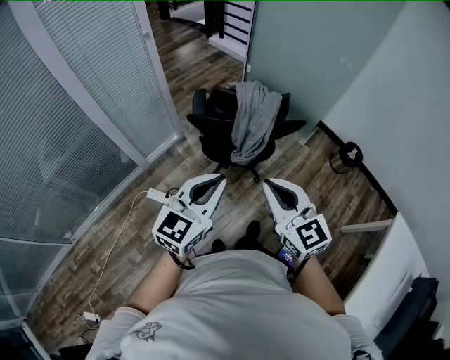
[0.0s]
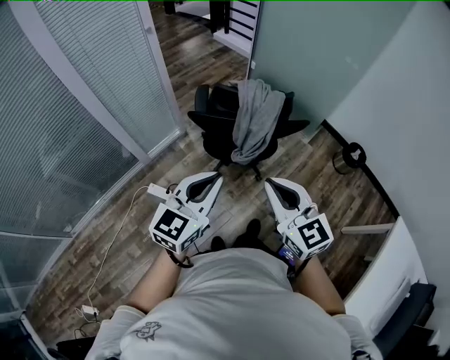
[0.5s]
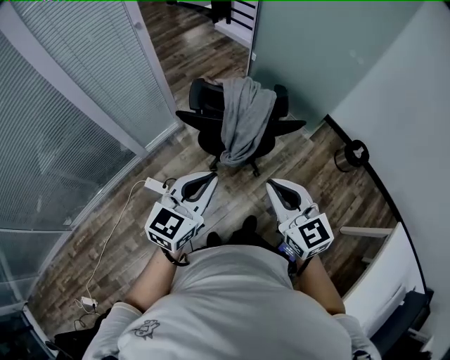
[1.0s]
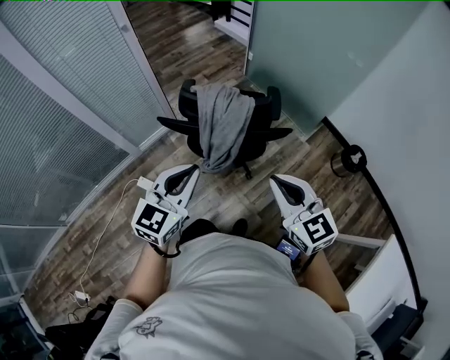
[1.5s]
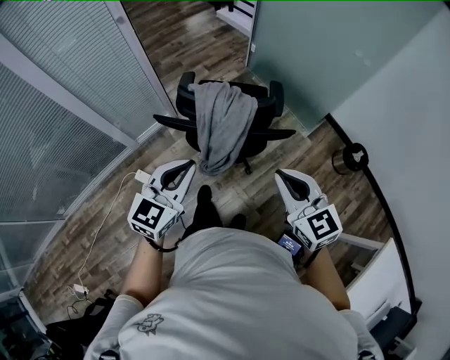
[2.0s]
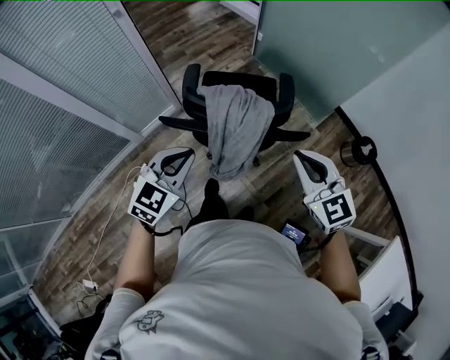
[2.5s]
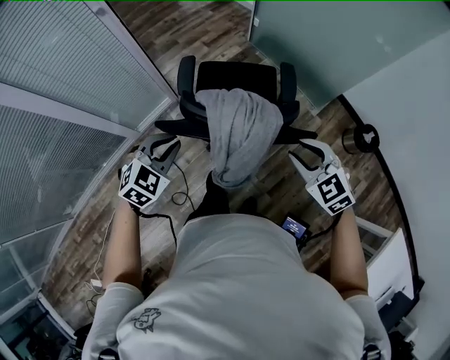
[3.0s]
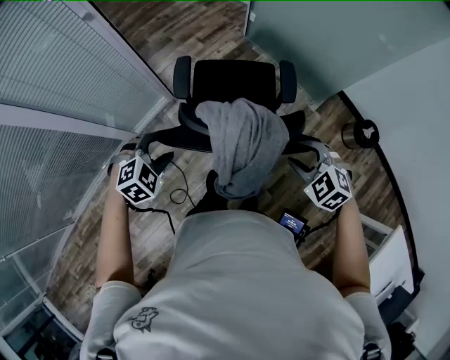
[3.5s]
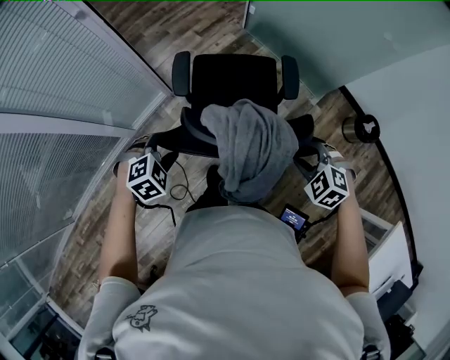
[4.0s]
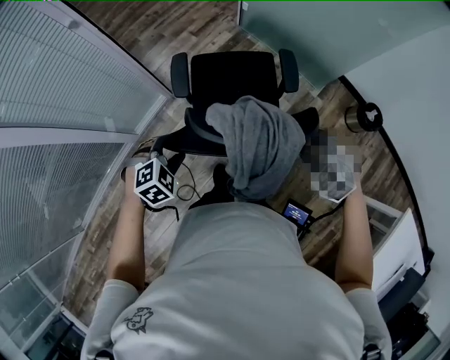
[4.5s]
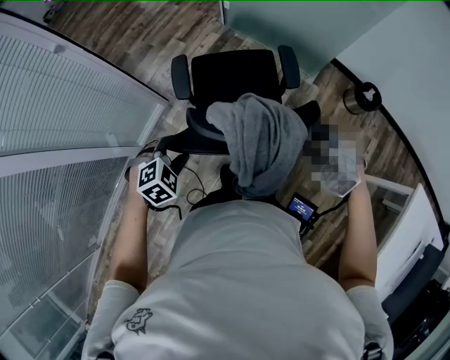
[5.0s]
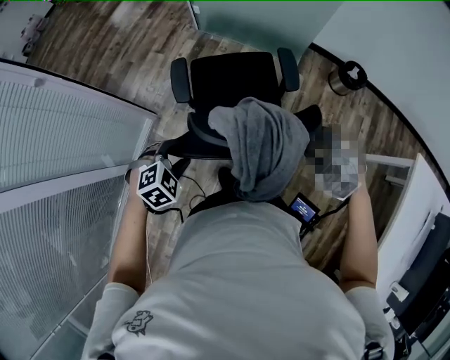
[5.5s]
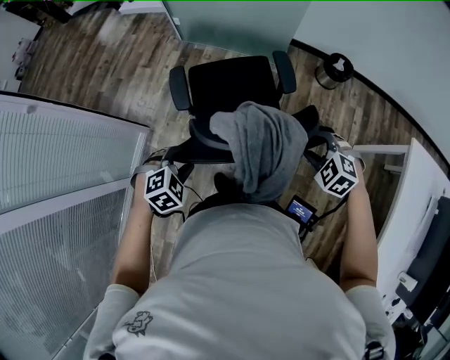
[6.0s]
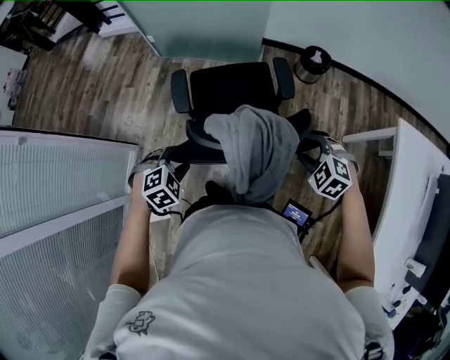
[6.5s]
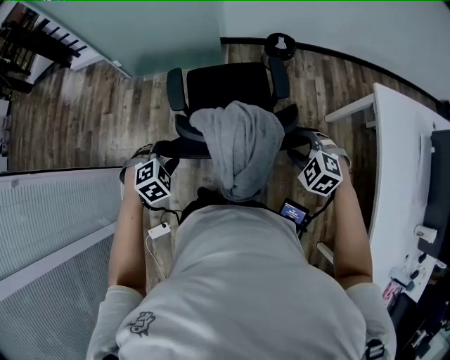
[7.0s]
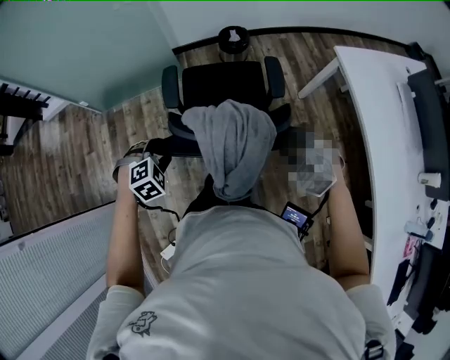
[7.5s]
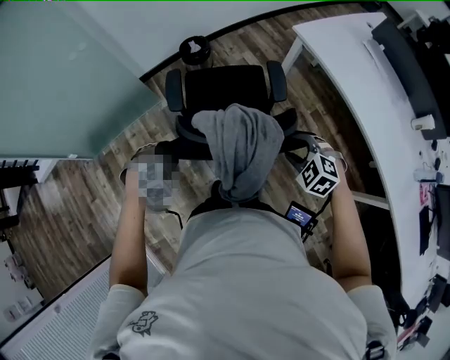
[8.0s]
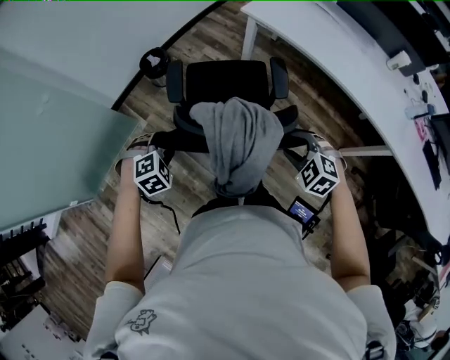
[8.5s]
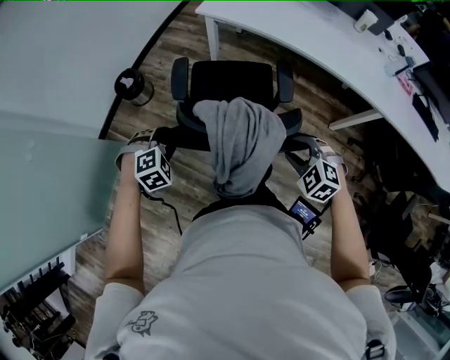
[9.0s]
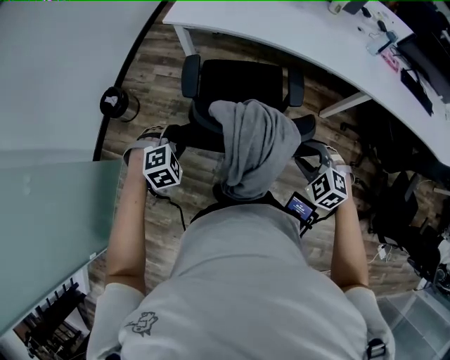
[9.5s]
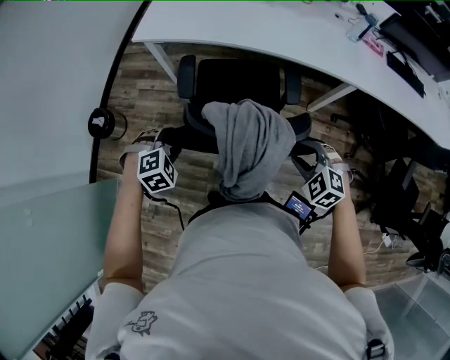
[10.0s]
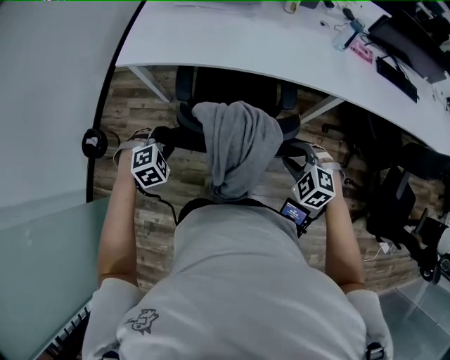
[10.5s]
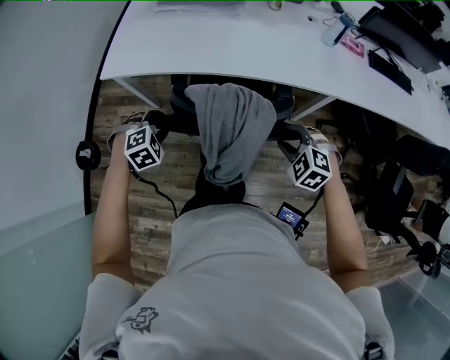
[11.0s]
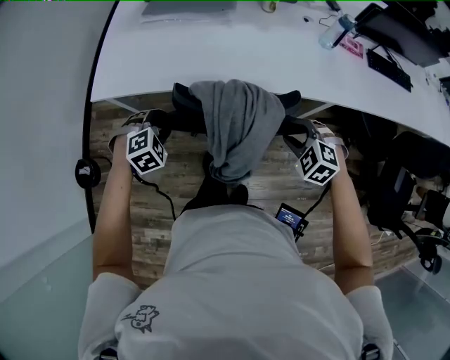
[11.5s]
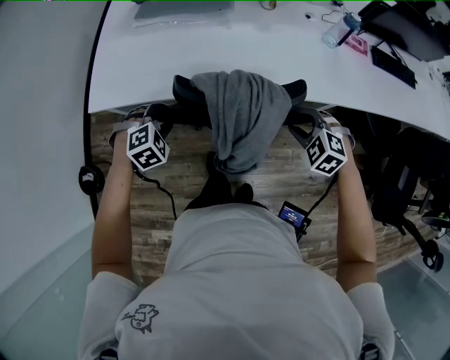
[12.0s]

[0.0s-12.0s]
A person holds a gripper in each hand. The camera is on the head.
0.0s to 2.0s: The left gripper travels forward, to the right and downward by roughly 20 cm. The right gripper heads to the right and forward, covering about 25 cm.
2.0s to 4.0s: The right gripper heads downward and forward, covering some 25 cm, tips its fingers downward by roughly 50 degrees, and opens. Meanwhile the left gripper heads downward, forward and to the left, covering roughly 35 cm, points its fingers some 50 degrees further downward, and opens up.
4.0s to 6.0s: The left gripper ends up about 15 cm from where it was, and rotates roughly 30 degrees, while the right gripper ends up approximately 15 cm from where it was, and swivels about 30 degrees.
6.0s to 8.0s: The right gripper ends up approximately 35 cm from where it was, and twists approximately 40 degrees clockwise, seen from behind, while the left gripper moves about 40 cm, and twists approximately 50 degrees clockwise, seen from behind.
8.0s to 10.0s: The left gripper ends up roughly 40 cm from where it was, and rotates around the line of its fingers by approximately 50 degrees, clockwise from behind; the right gripper shifts by roughly 35 cm, and swivels approximately 50 degrees.
10.0s to 12.0s: Both grippers travel together forward, about 40 cm.

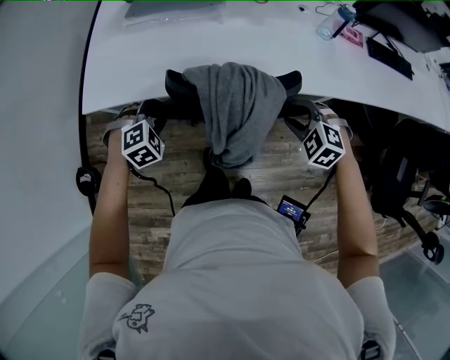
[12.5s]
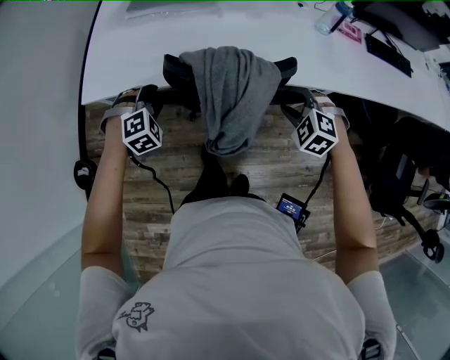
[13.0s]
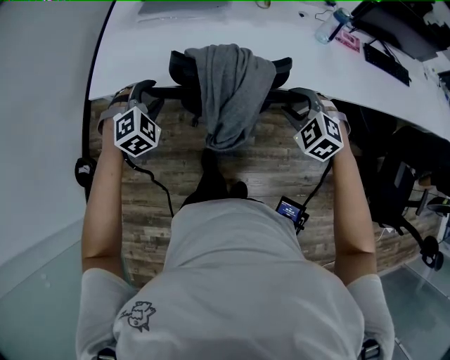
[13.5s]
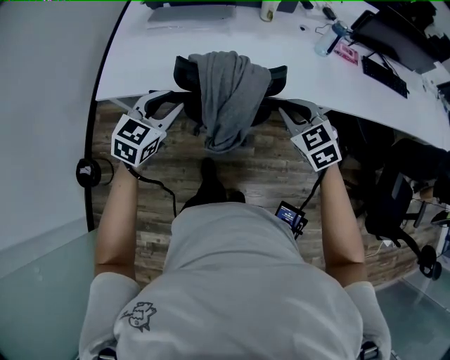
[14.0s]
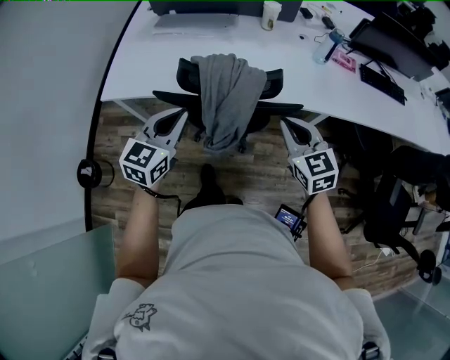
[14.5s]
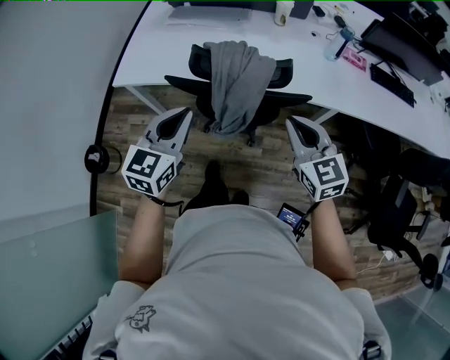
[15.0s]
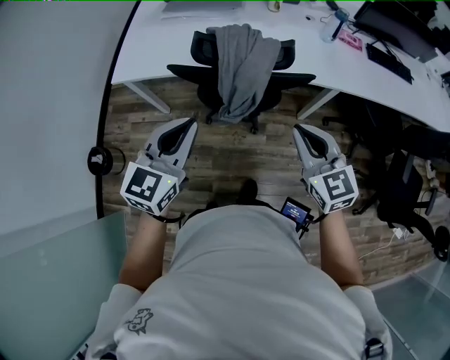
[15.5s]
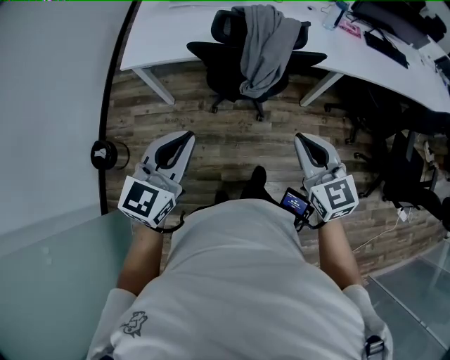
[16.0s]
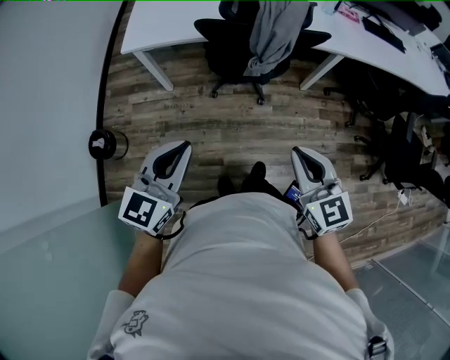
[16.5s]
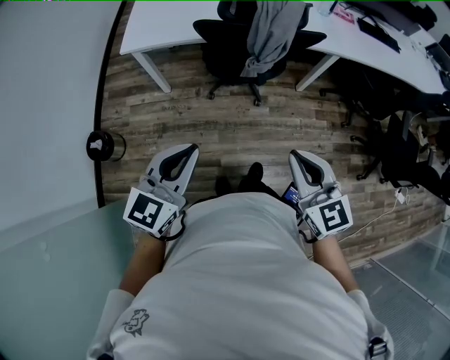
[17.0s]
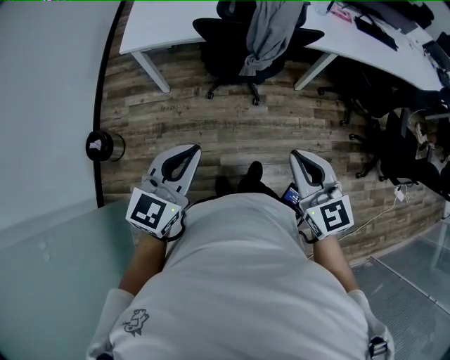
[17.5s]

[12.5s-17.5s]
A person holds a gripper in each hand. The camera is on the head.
12.5s to 15.0s: The left gripper is displaced upward, backward and to the right by about 30 cm, tilts its fingers approximately 50 degrees upward, and closes up; the right gripper is displaced upward and backward by about 20 cm, angles its fingers upward, by some 40 degrees, and closes up.
15.0s to 17.5s: The right gripper is displaced backward and to the left by roughly 40 cm; the left gripper is displaced backward by approximately 35 cm.

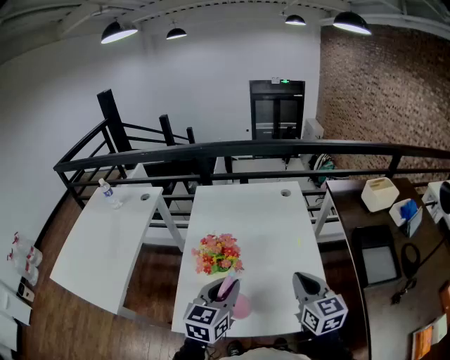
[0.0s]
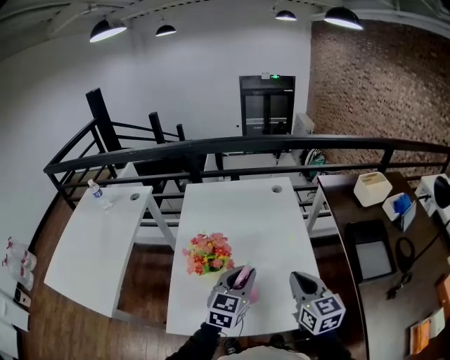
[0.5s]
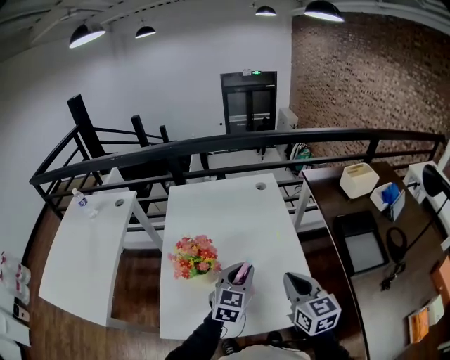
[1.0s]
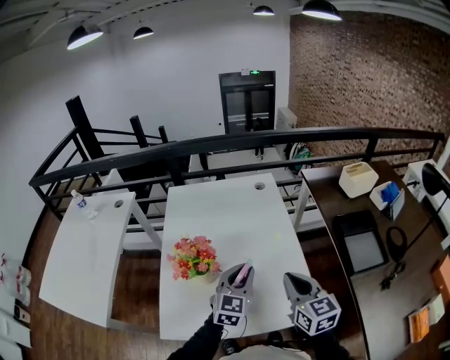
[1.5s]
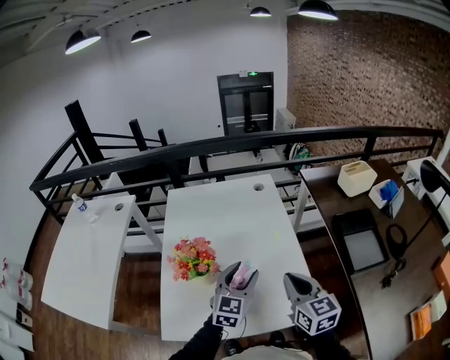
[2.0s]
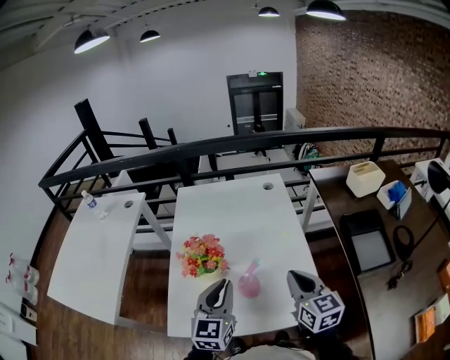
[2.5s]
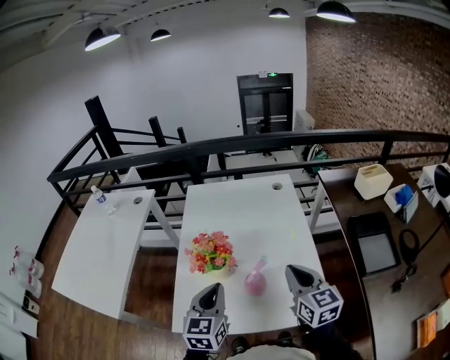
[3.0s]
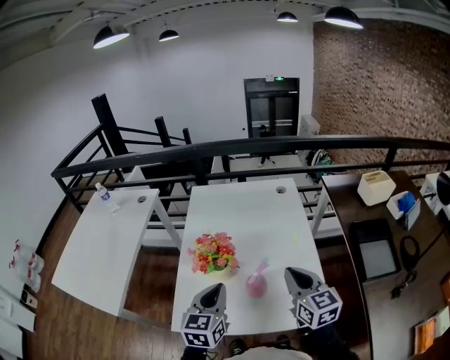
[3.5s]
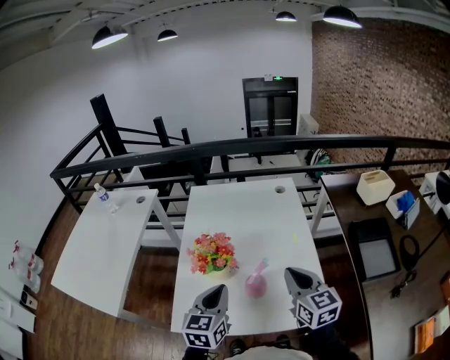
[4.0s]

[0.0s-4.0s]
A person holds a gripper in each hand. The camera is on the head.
0.0s to 2.0s: The left gripper shifts roughly 15 cm to the right, forward and downward, and opens up.
2.0s to 4.0s: The right gripper ends up roughly 5 cm from where it was, while the left gripper is displaced to the left and backward by some 15 cm, rotates approximately 20 degrees, and closes.

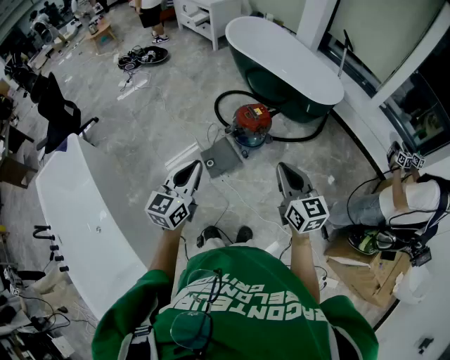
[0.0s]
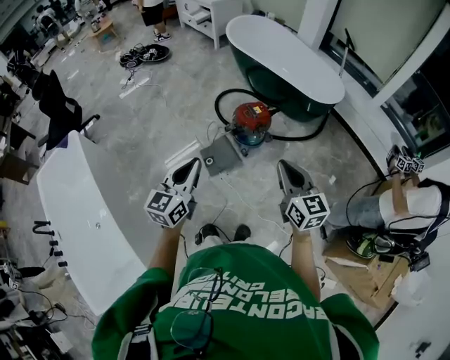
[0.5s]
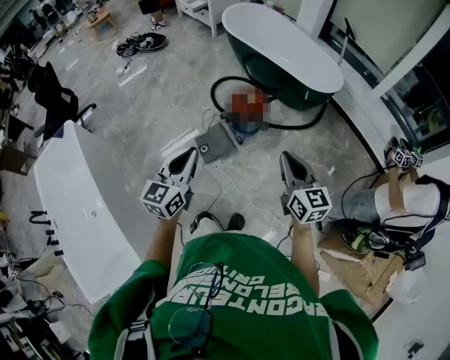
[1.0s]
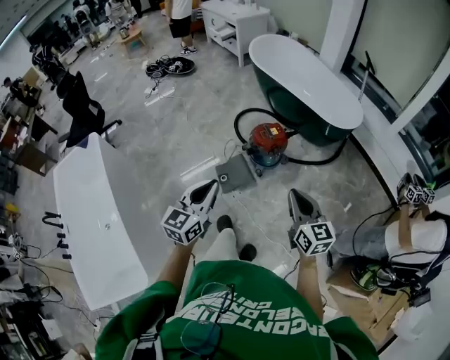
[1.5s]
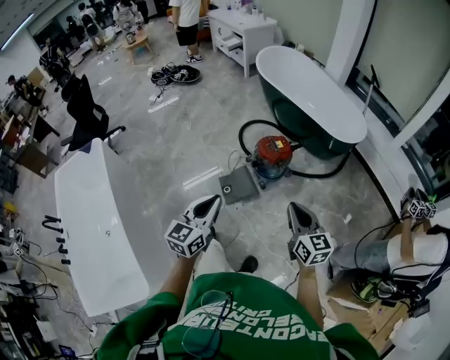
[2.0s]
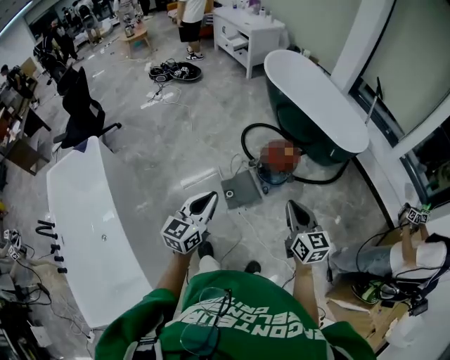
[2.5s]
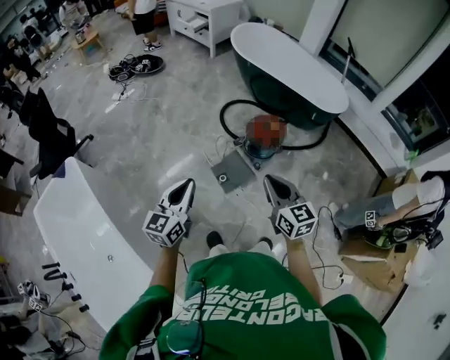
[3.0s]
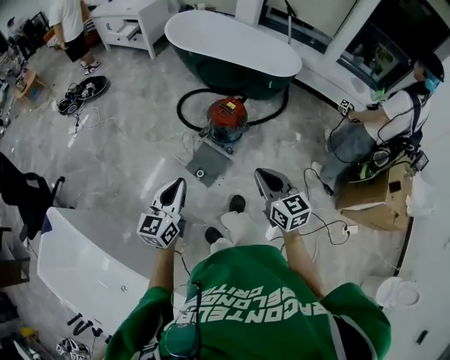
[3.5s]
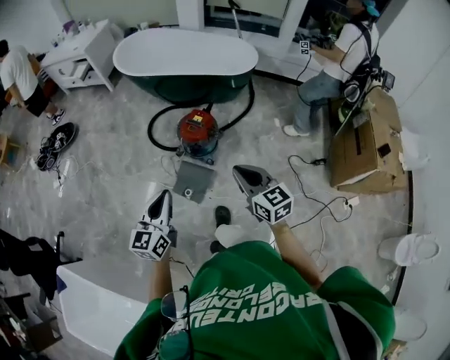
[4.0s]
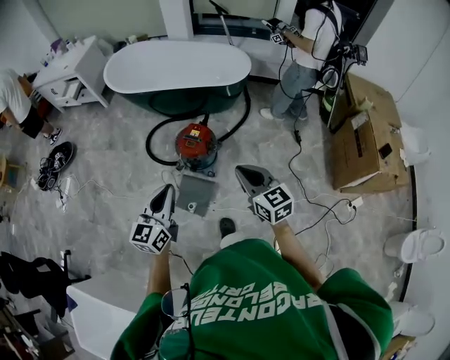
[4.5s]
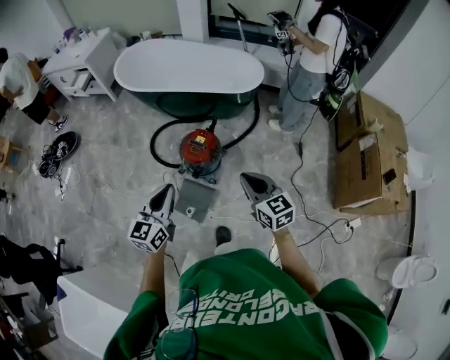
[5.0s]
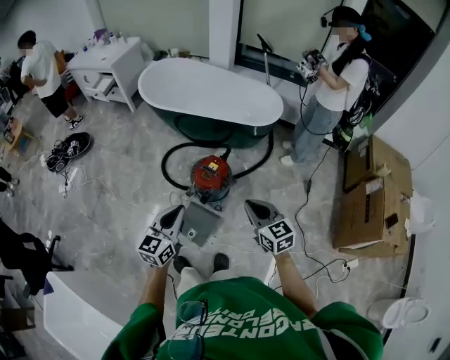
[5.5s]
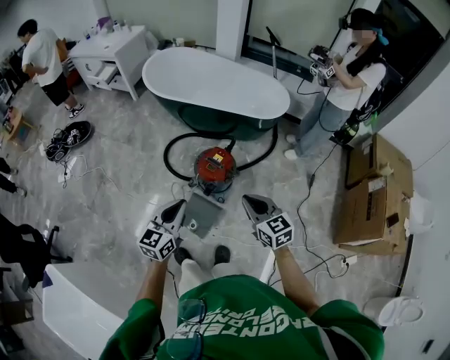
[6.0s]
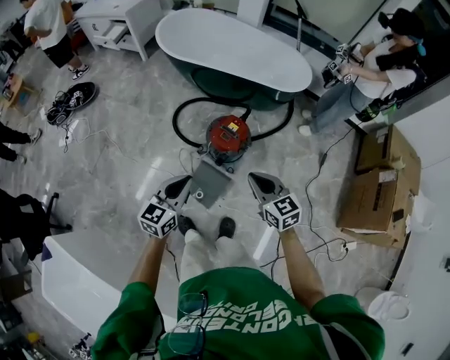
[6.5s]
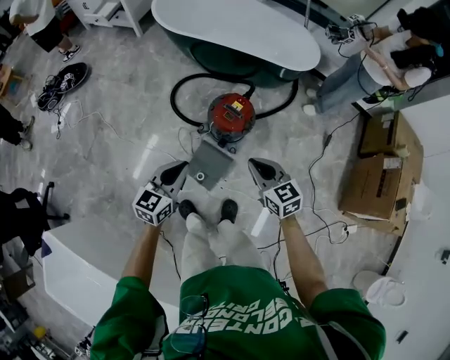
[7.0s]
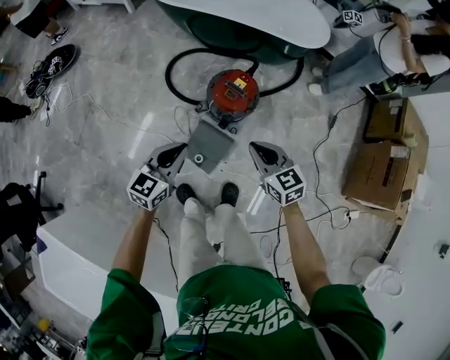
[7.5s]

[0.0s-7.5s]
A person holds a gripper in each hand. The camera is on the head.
0.0s to 2.0s: The right gripper moves some 5 cm.
2.0s to 4.0s: The left gripper moves roughly 25 cm, and rotates roughly 30 degrees; the right gripper shifts by some 20 cm, and turns by roughly 30 degrees.
4.0s to 5.5s: The grippers both shift forward by approximately 15 cm.
5.5s to 7.5s: Both grippers travel together downward and to the left, about 25 cm.
